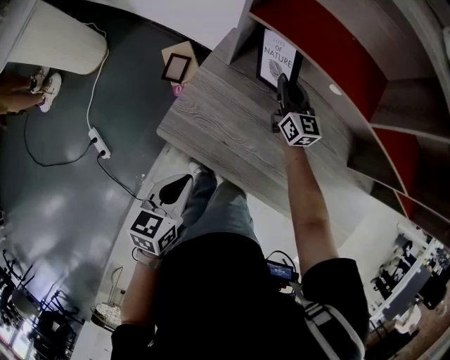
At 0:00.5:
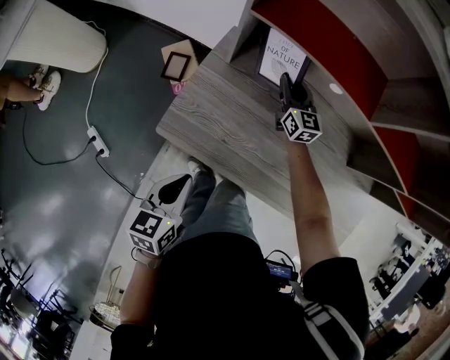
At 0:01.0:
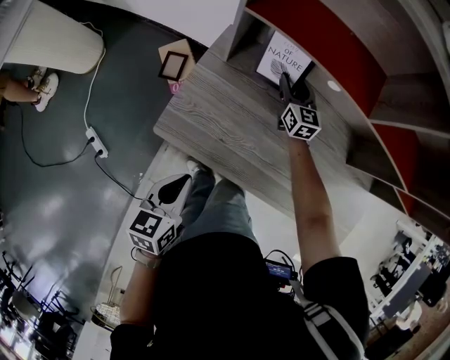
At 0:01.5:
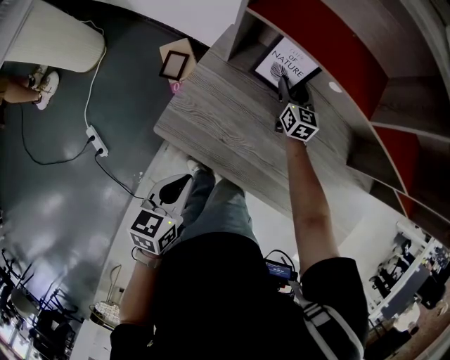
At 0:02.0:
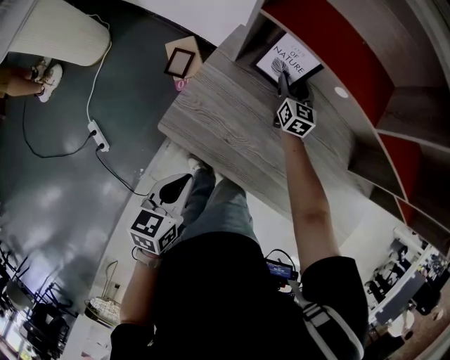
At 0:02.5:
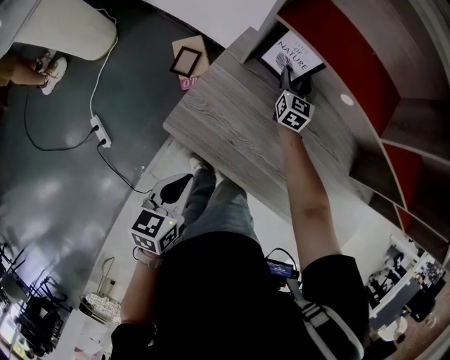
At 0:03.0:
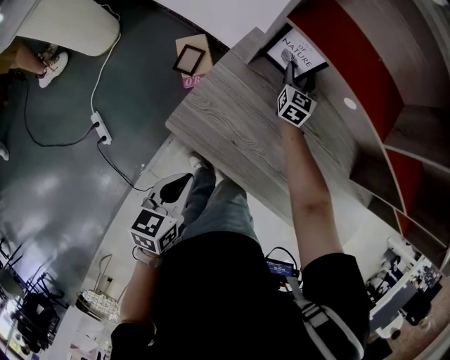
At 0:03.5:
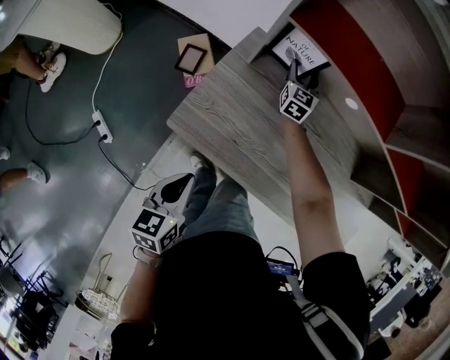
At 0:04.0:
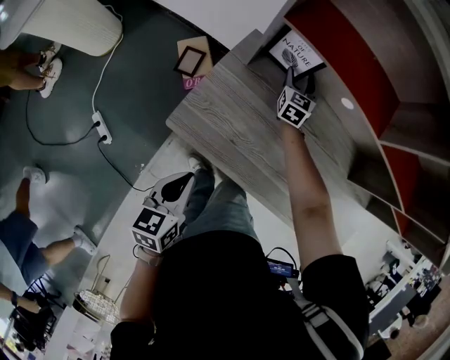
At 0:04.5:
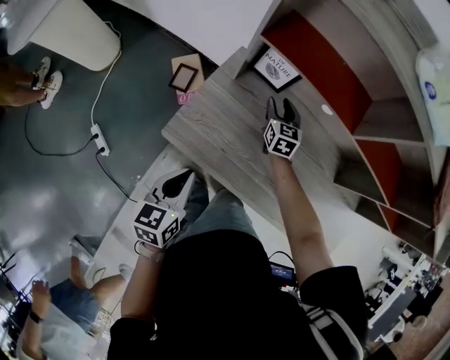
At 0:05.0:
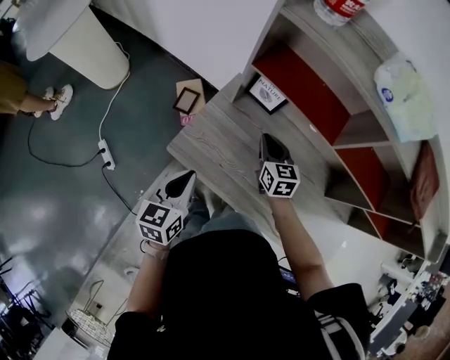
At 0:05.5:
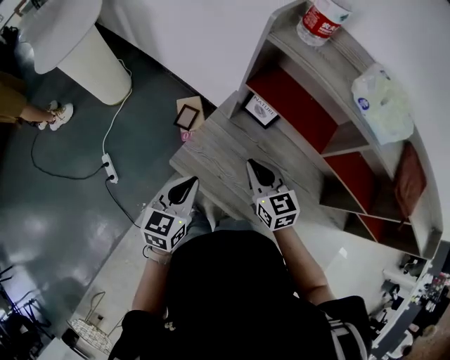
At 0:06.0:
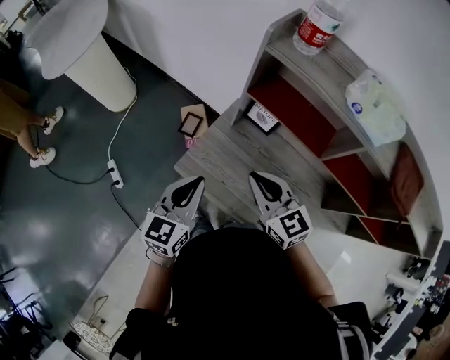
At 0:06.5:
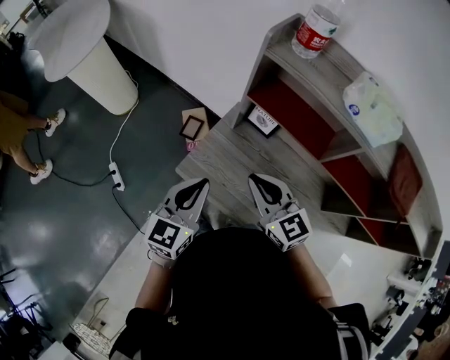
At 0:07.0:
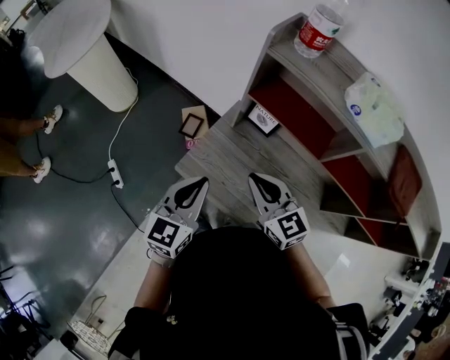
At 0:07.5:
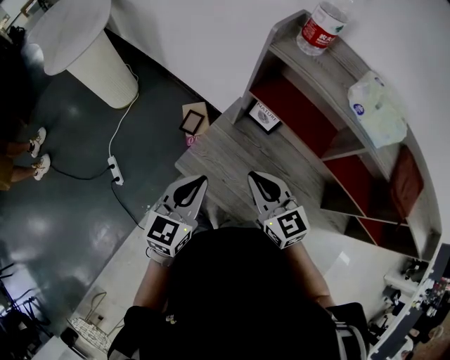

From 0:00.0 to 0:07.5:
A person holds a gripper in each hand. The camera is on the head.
From 0:00.0 to 0:02.0: The right gripper travels downward by roughly 5 cm, and opens its fingers.
From 0:02.0 to 0:04.0: The grippers stay close to where they were, moving slightly.
From 0:04.0 to 0:05.5: The right gripper moves about 35 cm, rotates approximately 40 degrees, and closes up; the left gripper heads upward, covering some 15 cm.
From 0:05.5 to 0:07.5: The two grippers go roughly 10 cm upward.

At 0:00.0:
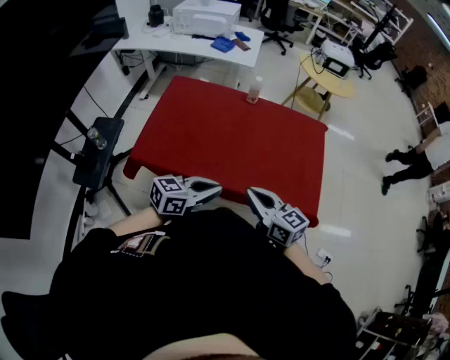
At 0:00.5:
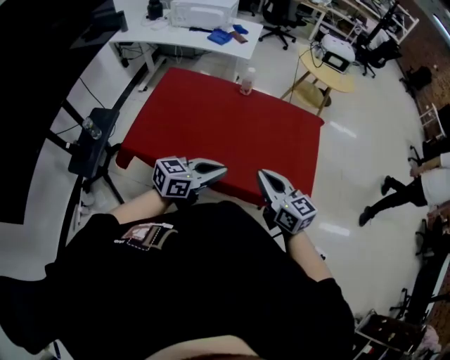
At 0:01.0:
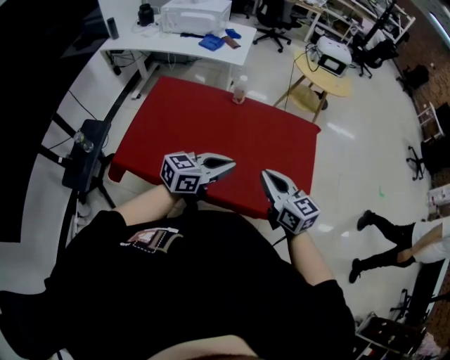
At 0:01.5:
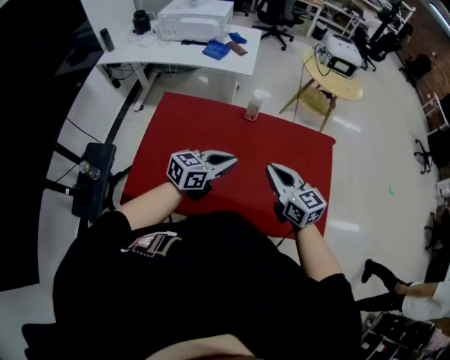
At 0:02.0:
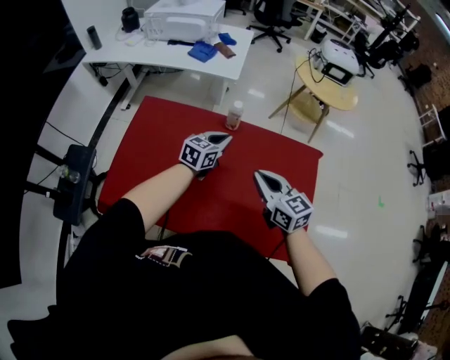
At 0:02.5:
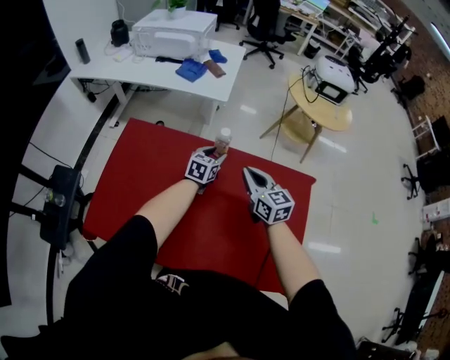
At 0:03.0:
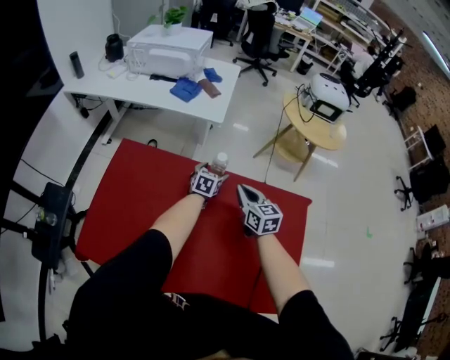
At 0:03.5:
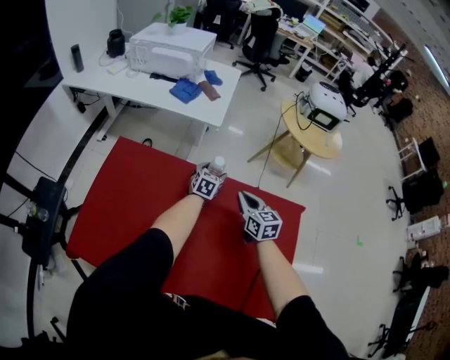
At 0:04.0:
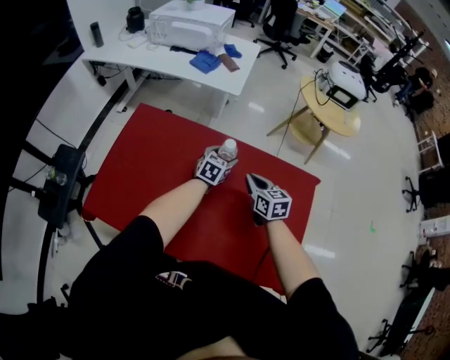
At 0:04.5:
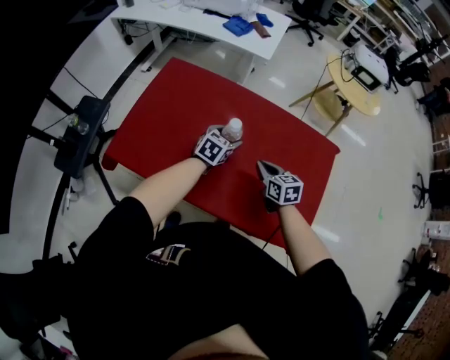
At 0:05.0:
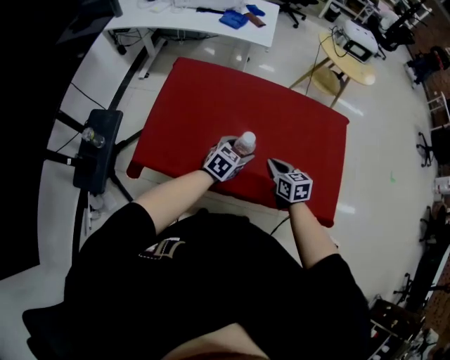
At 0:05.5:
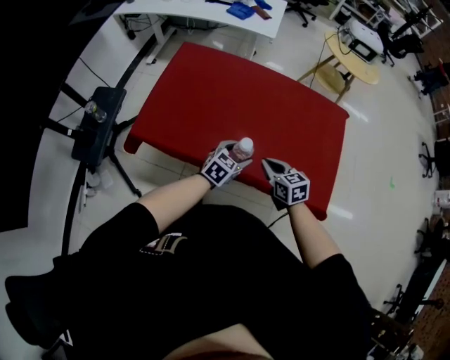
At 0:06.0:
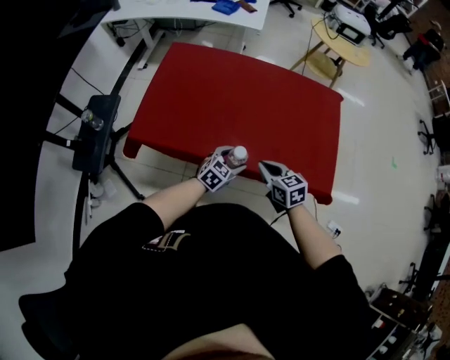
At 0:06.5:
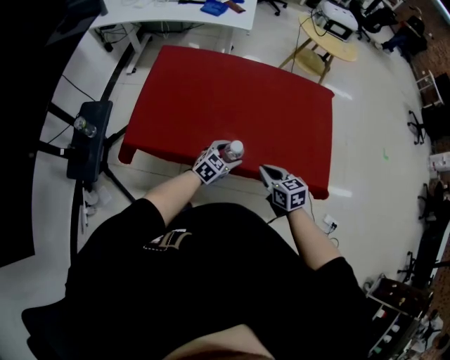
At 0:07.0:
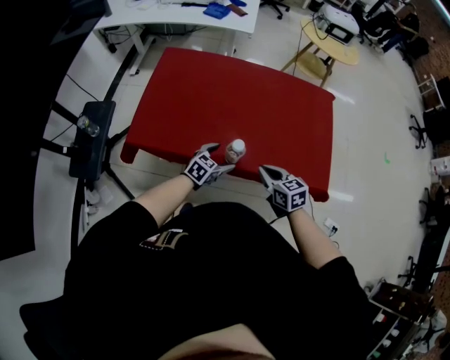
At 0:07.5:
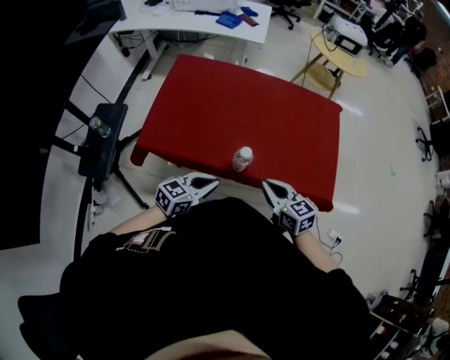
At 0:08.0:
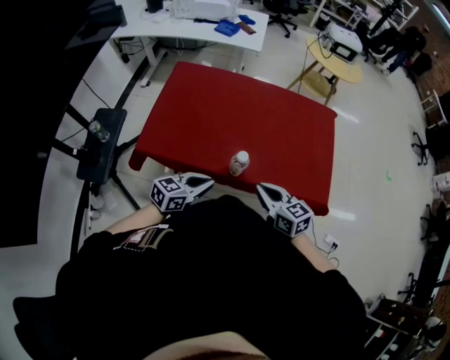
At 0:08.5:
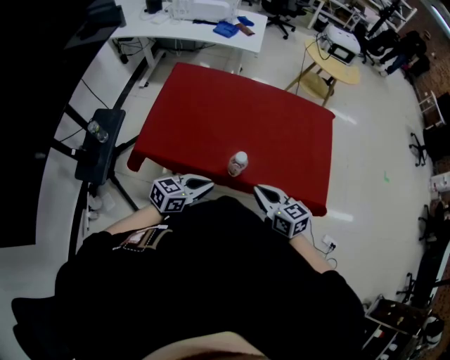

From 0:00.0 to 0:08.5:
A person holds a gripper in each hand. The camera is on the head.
From 0:00.0 to 0:02.0: The grippers both shift forward by about 40 cm. The left gripper changes its angle by approximately 20 degrees.
From 0:02.0 to 0:04.0: The right gripper travels forward and downward by roughly 20 cm. Meanwhile the left gripper is displaced downward and forward by approximately 15 cm, and opens its fingers.
From 0:04.0 to 0:06.5: The two grippers travel together, backward, some 40 cm. The left gripper changes its angle by some 30 degrees.
From 0:06.5 to 0:08.5: The right gripper shifts approximately 10 cm upward and backward; the left gripper heads upward, backward and to the left, covering some 20 cm, swivels roughly 30 degrees, and closes.

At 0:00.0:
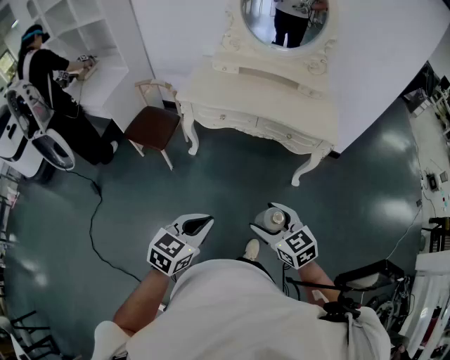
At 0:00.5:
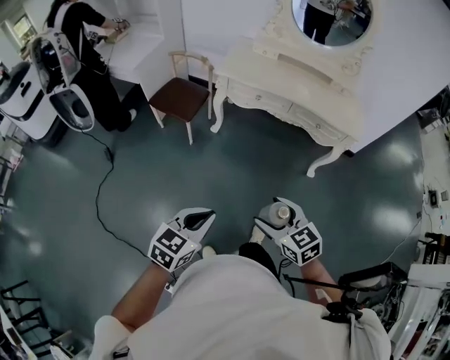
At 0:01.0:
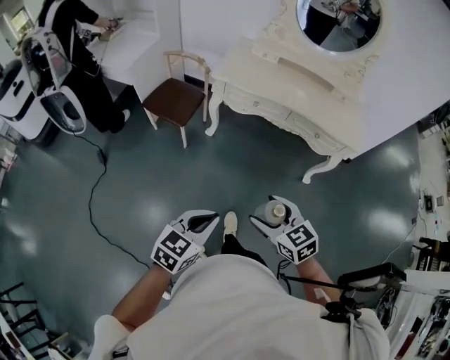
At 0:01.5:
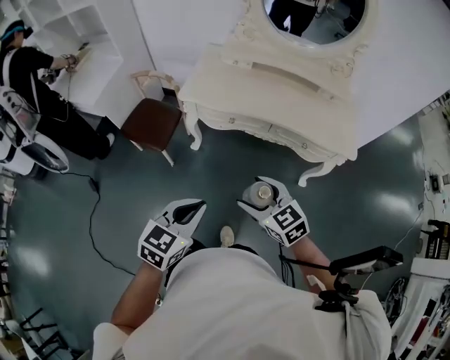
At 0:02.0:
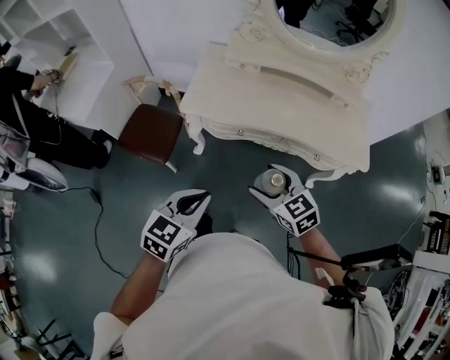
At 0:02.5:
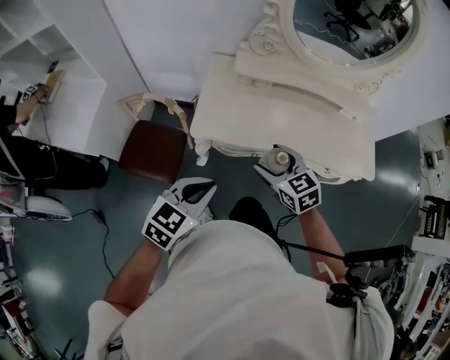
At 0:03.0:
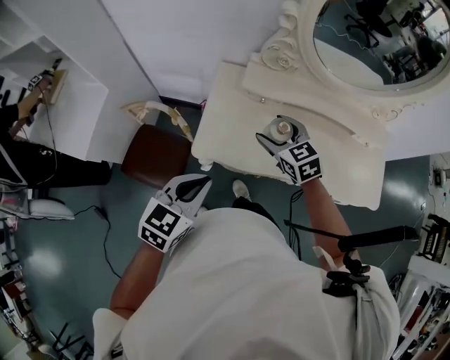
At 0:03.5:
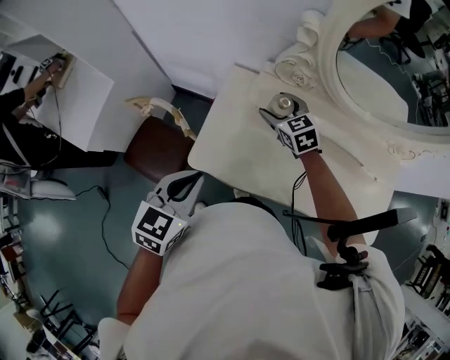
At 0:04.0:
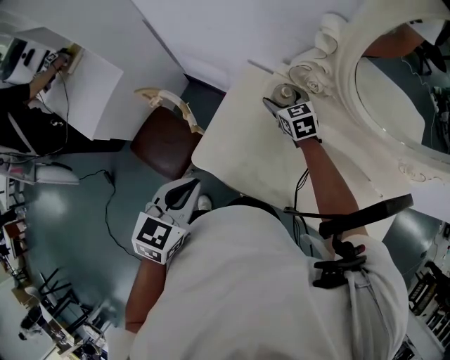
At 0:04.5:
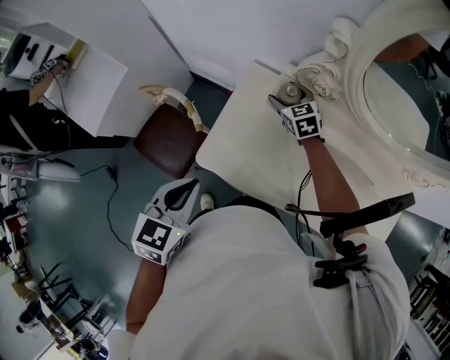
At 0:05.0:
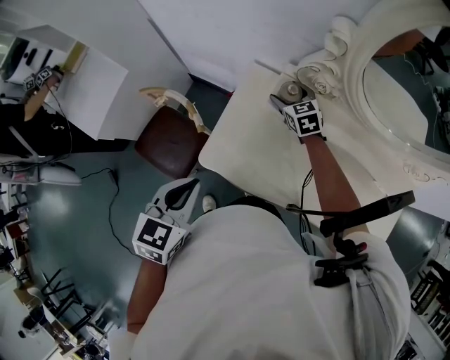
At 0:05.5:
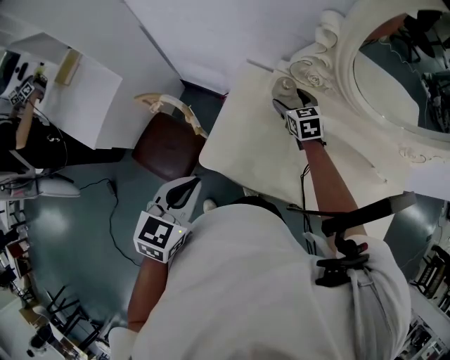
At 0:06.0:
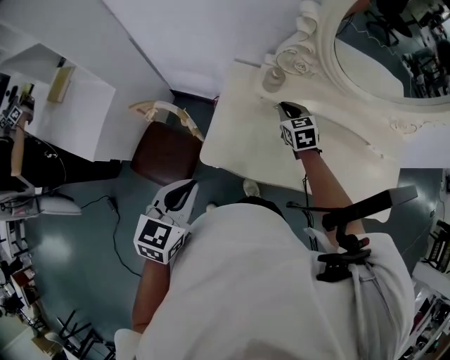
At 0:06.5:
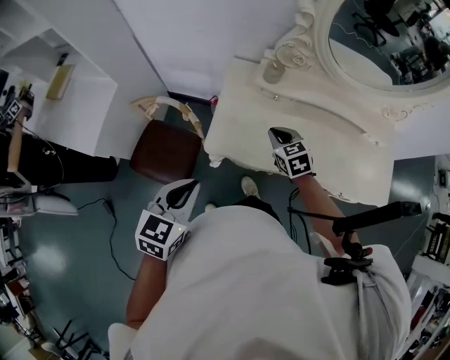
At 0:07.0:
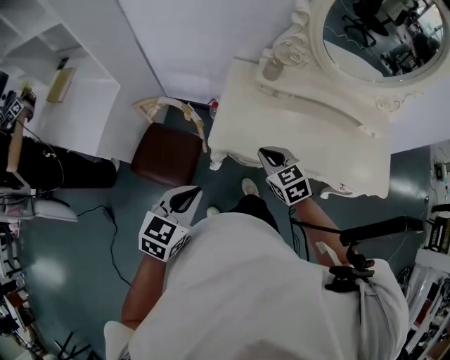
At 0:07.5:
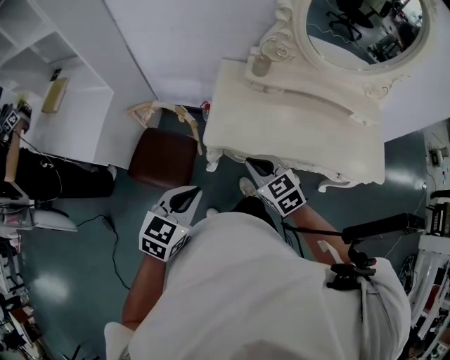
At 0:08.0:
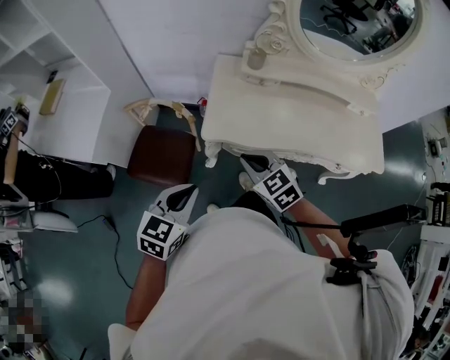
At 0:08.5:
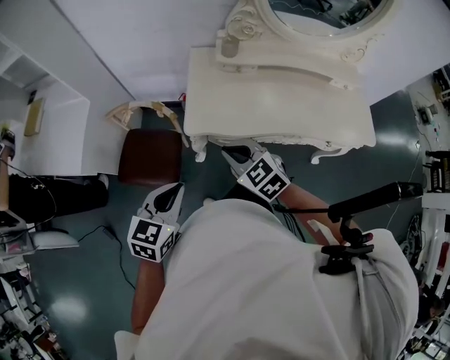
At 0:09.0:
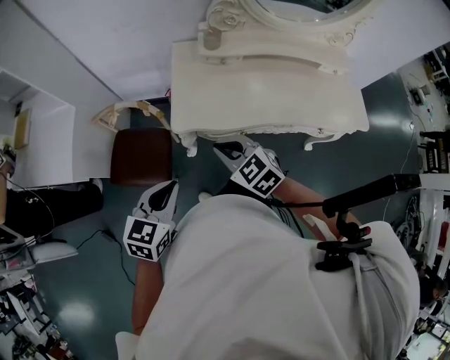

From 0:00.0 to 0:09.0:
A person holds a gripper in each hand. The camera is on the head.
From 0:00.0 to 0:02.0: The two grippers go about 40 cm forward.
From 0:02.0 to 0:04.5: The pair of grippers is taken forward, approximately 50 cm. The left gripper rotates approximately 30 degrees.
From 0:04.5 to 0:07.0: The right gripper travels backward by roughly 40 cm, and closes, while the left gripper heads backward and to the left, covering approximately 20 cm, and changes its angle by some 20 degrees.
From 0:07.0 to 0:09.0: The right gripper is displaced backward by about 10 cm.

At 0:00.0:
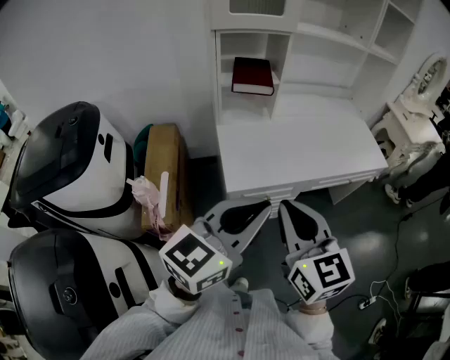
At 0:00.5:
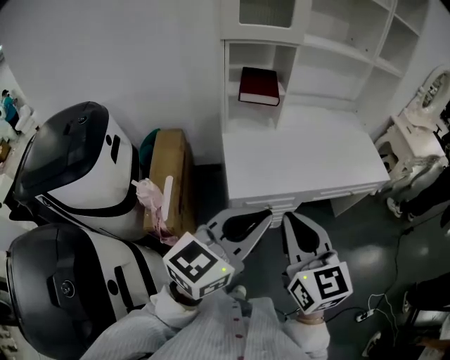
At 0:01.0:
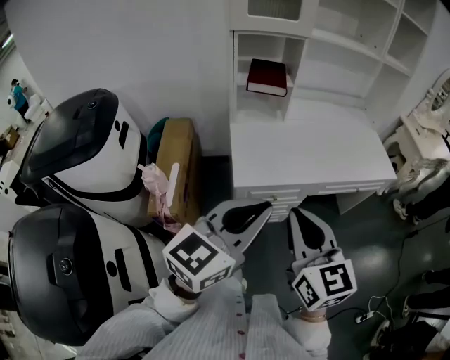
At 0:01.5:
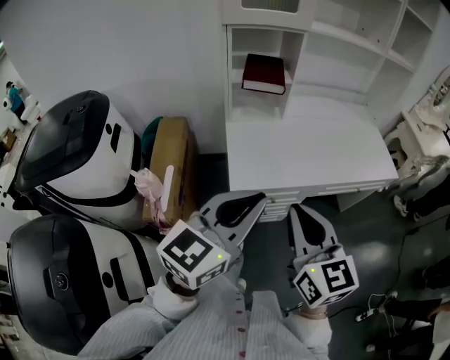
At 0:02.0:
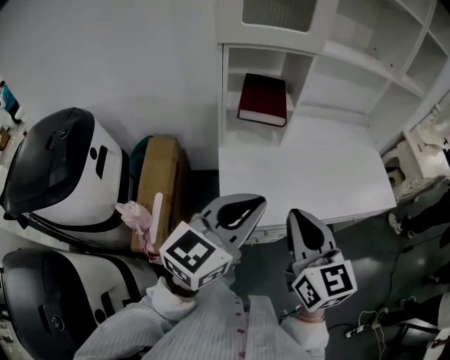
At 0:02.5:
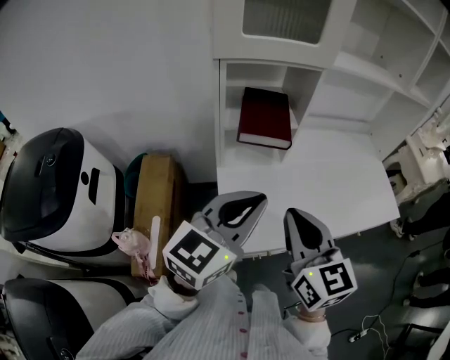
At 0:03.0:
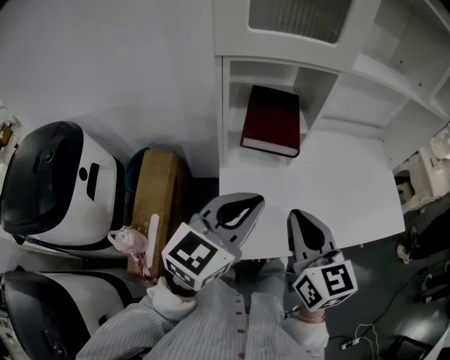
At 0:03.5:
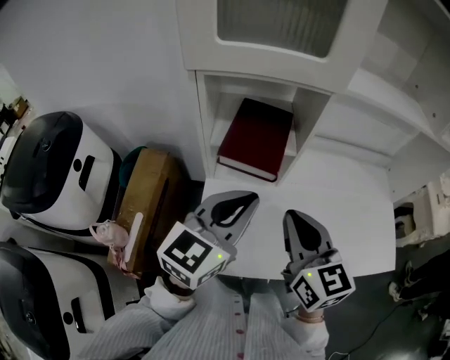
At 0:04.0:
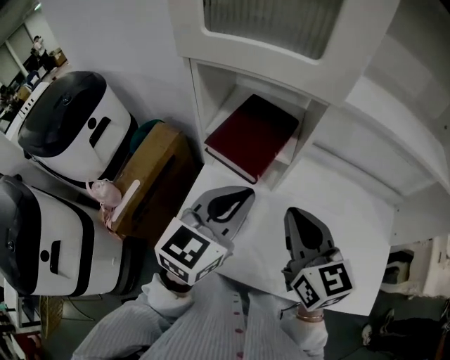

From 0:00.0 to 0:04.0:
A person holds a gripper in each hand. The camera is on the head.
From 0:00.0 to 0:02.0: The two grippers go roughly 15 cm forward.
From 0:02.0 to 0:04.0: The left gripper shifts by roughly 30 cm, and rotates some 30 degrees; the right gripper moves approximately 30 cm, and rotates about 30 degrees.
